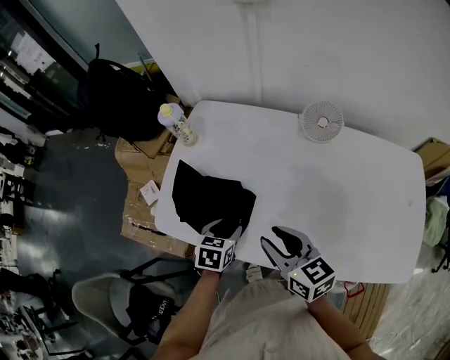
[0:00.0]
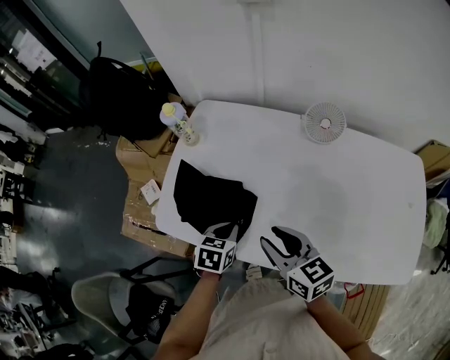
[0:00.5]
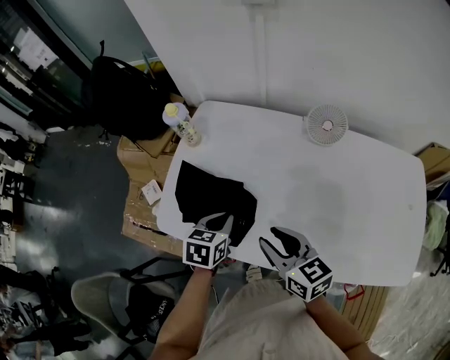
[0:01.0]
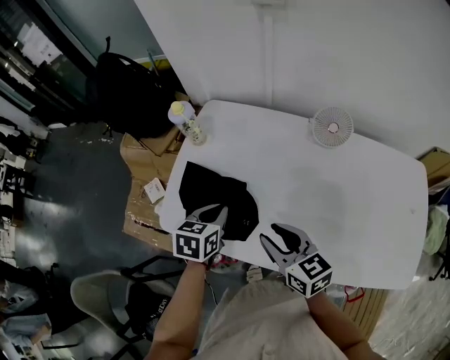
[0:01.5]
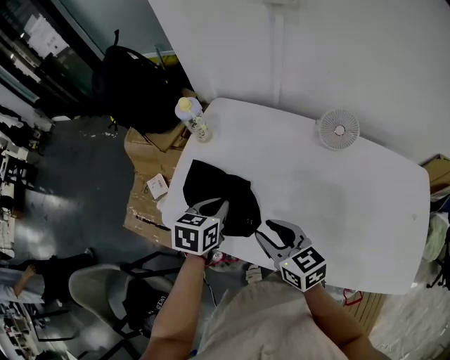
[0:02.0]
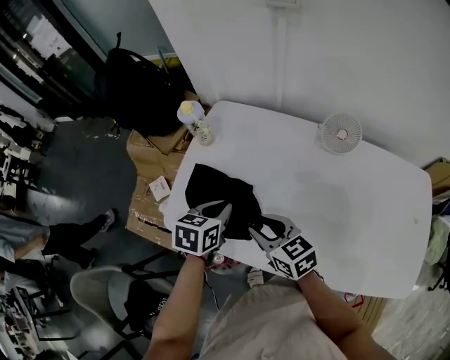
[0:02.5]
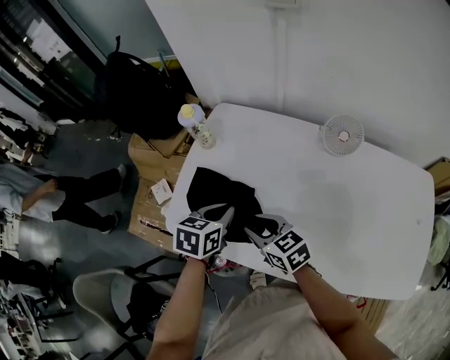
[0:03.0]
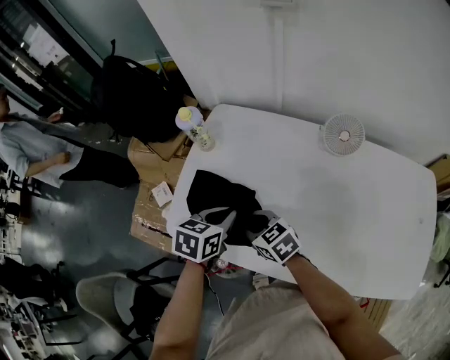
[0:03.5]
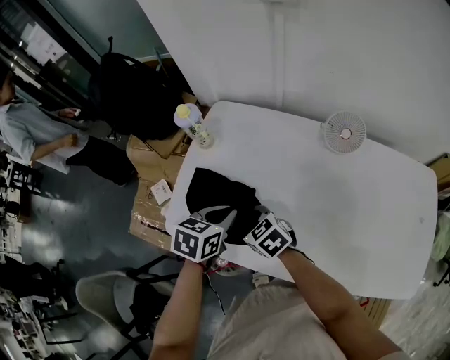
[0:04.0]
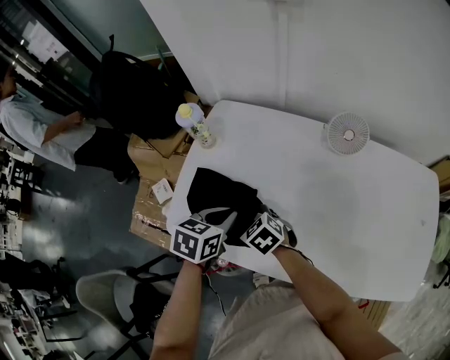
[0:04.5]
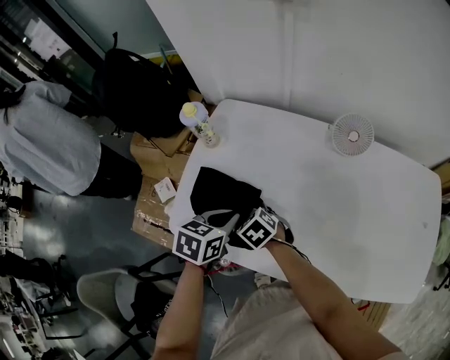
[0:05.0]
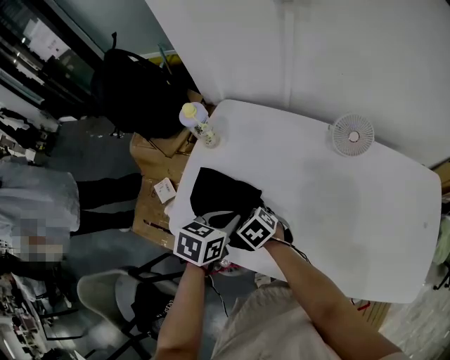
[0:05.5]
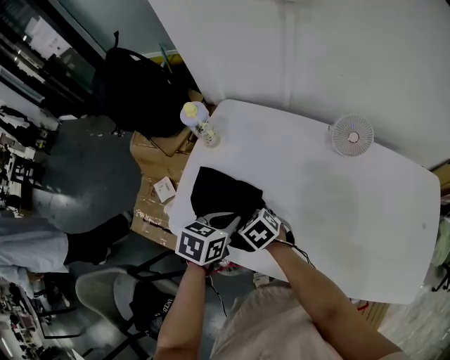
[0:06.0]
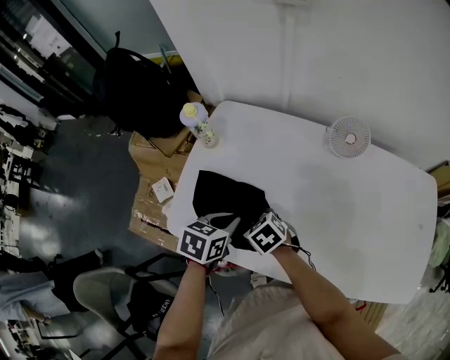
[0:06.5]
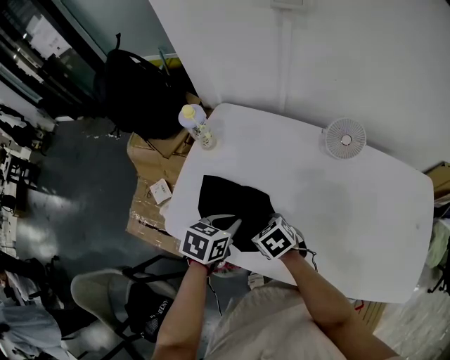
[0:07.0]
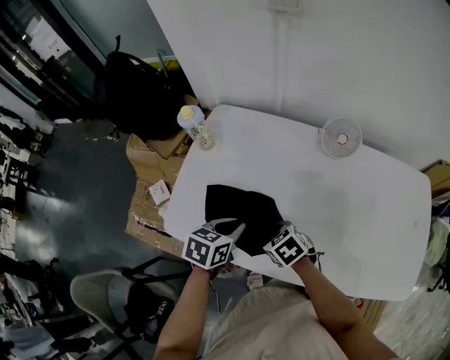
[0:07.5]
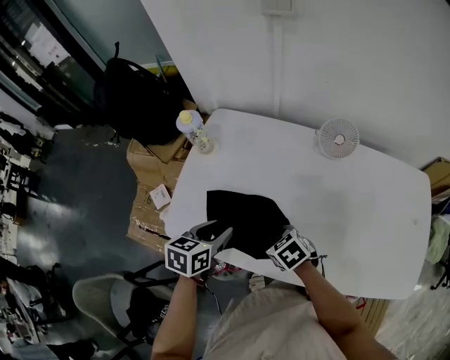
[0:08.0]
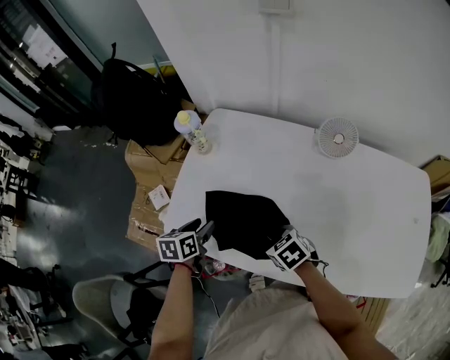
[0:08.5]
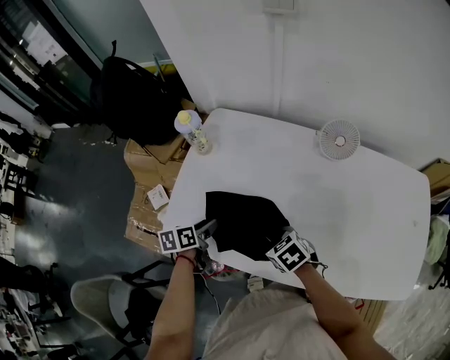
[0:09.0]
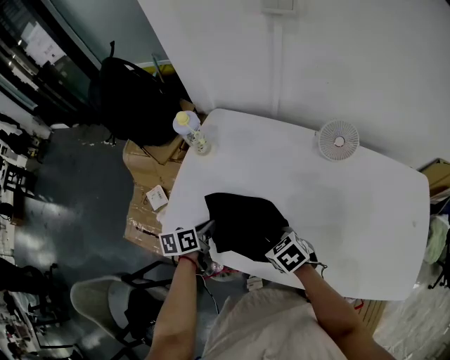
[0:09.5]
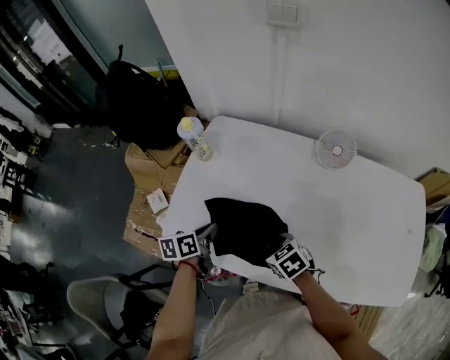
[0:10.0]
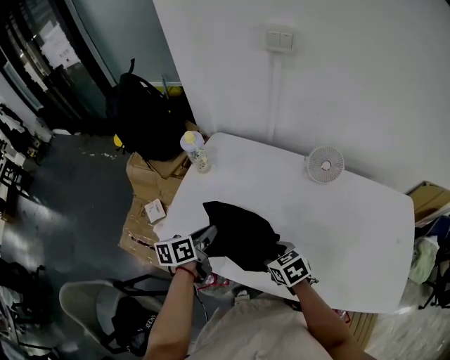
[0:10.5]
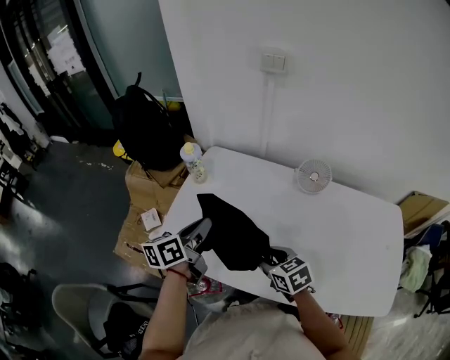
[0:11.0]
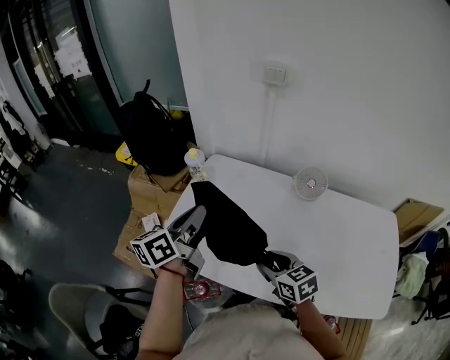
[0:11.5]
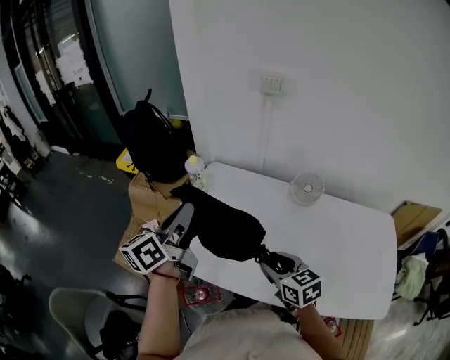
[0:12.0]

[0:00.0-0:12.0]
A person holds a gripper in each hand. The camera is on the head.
0:00.0 to 0:02.0: The right gripper moves some 5 cm. The left gripper goes approximately 10 cm upward and forward, and closes up.
0:02.0 to 0:04.0: The right gripper heads downward, to the left and forward, covering approximately 15 cm, and rotates about 30 degrees.
0:04.0 to 0:06.0: There are only small adjustments of the grippers.
0:06.0 to 0:08.0: The right gripper is displaced to the right and backward by approximately 10 cm. The left gripper opens its fingers.
0:08.0 to 0:10.0: The left gripper shifts roughly 5 cm downward, rotates roughly 30 degrees, and closes up.
0:10.0 to 0:12.0: The right gripper moves upward, some 20 cm, and changes its angle by some 30 degrees. Meanwhile the left gripper shifts approximately 35 cm upward, and points its fingers approximately 40 degrees further upward.

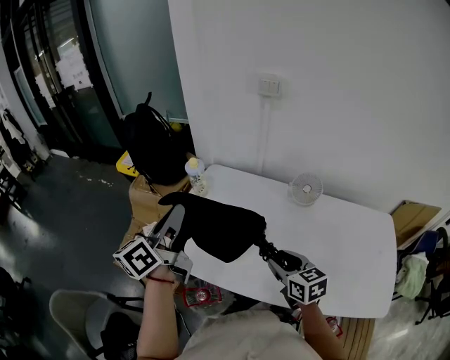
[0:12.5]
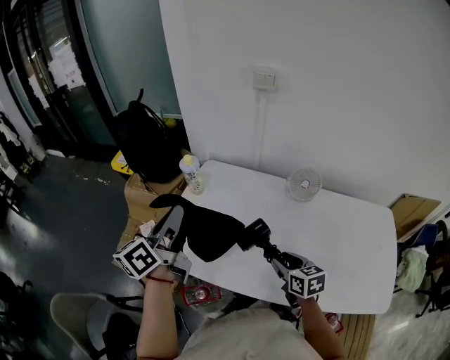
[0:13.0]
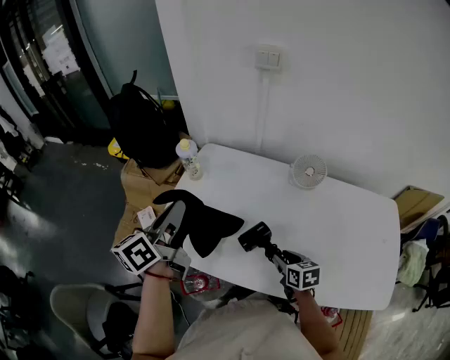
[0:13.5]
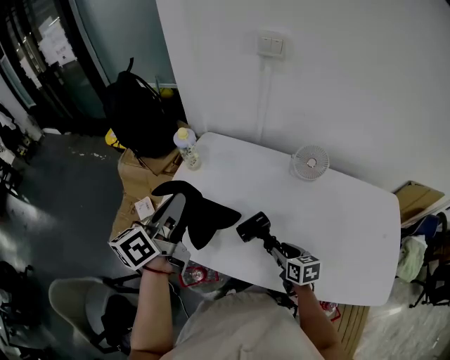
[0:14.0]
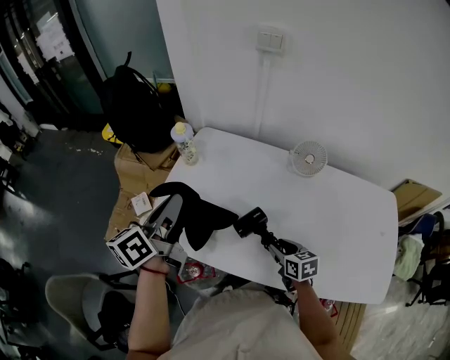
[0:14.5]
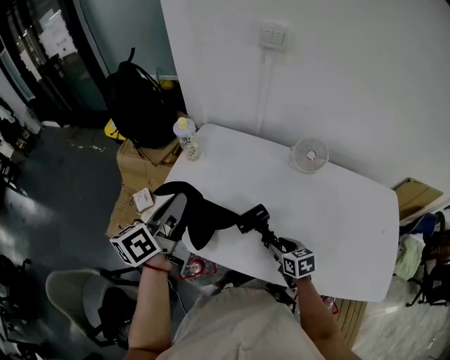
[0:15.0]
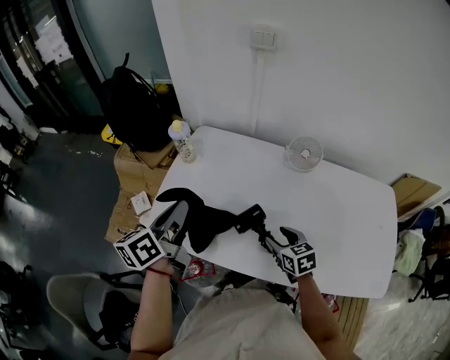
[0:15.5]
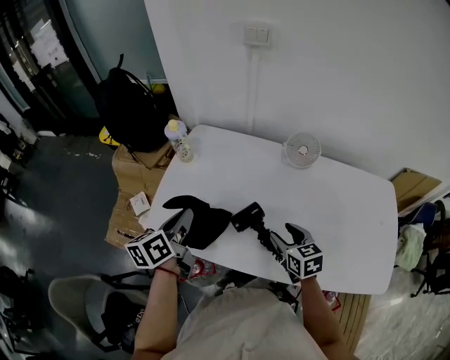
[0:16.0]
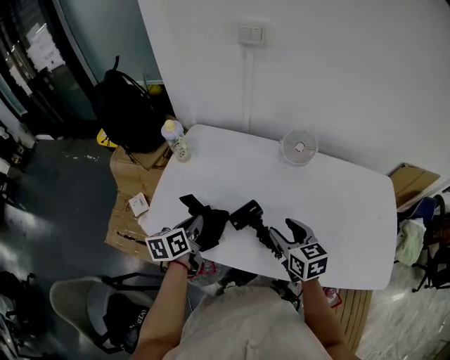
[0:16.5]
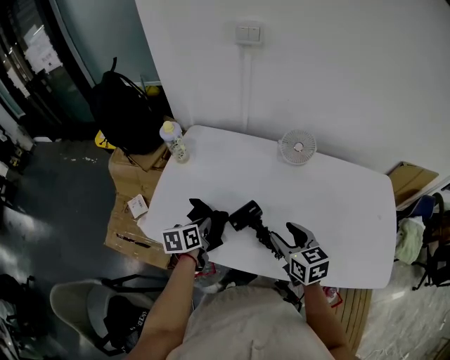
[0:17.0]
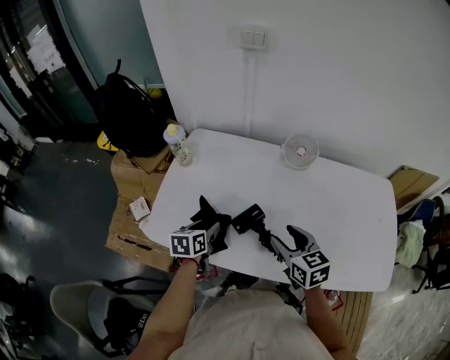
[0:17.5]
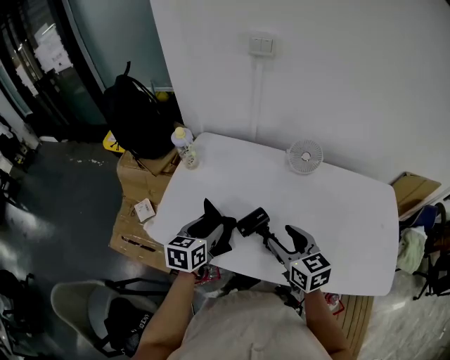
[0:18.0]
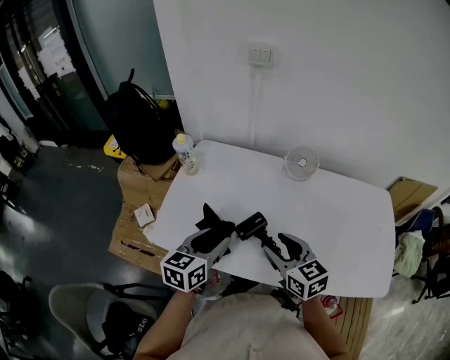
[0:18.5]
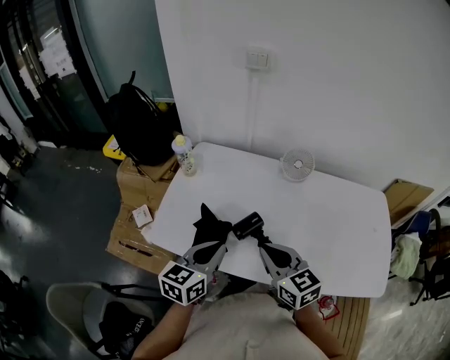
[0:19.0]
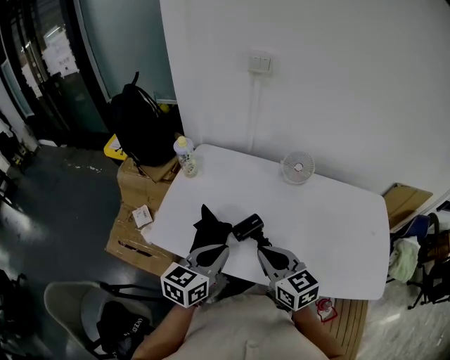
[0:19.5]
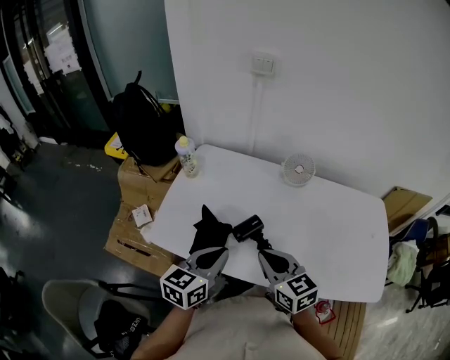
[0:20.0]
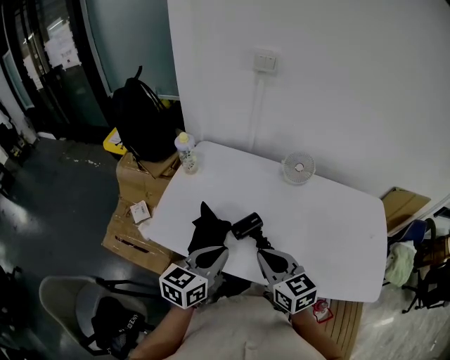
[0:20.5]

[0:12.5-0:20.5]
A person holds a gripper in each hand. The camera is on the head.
0:12.5 to 0:14.5: The right gripper is displaced downward by some 15 cm; the left gripper travels downward by approximately 10 cm.
0:14.5 to 0:16.5: The right gripper shifts about 10 cm upward. The left gripper travels downward by some 20 cm, and changes its angle by approximately 30 degrees.
0:16.5 to 0:18.5: The left gripper moves upward, to the right and backward, some 10 cm, swivels approximately 30 degrees, and opens; the right gripper travels upward and to the left by roughly 10 cm.
0:18.5 to 0:20.5: The right gripper shifts by about 5 cm, and closes, while the left gripper shifts about 5 cm backward, and closes.

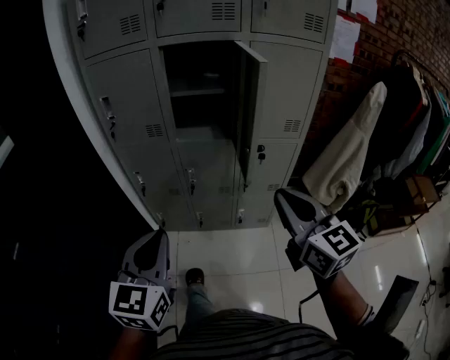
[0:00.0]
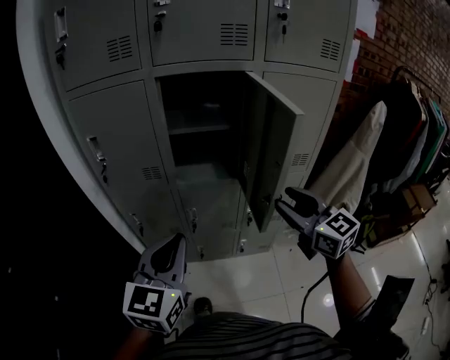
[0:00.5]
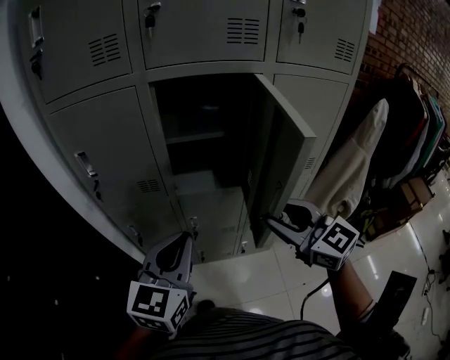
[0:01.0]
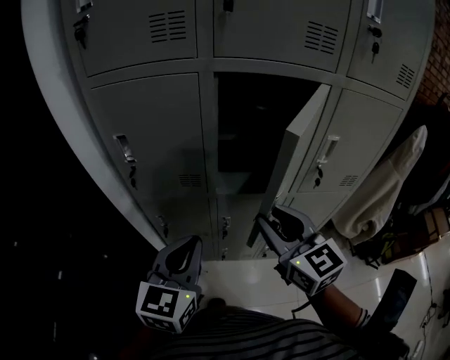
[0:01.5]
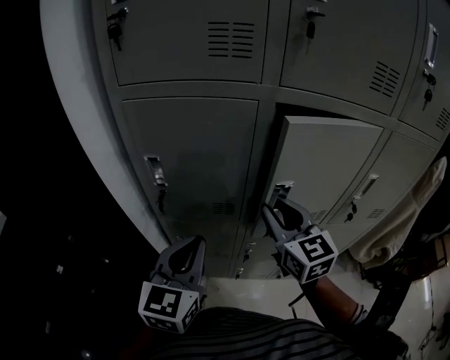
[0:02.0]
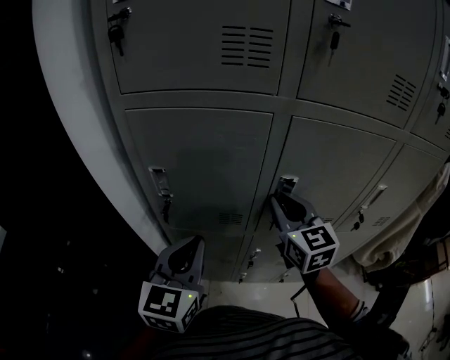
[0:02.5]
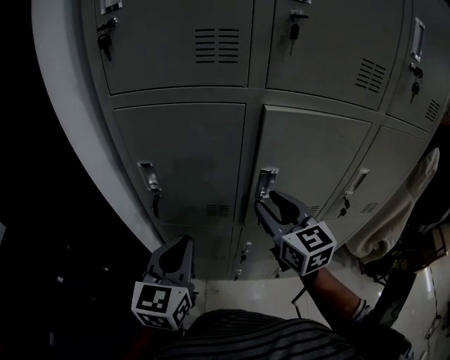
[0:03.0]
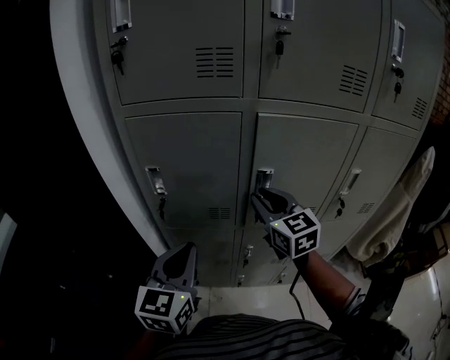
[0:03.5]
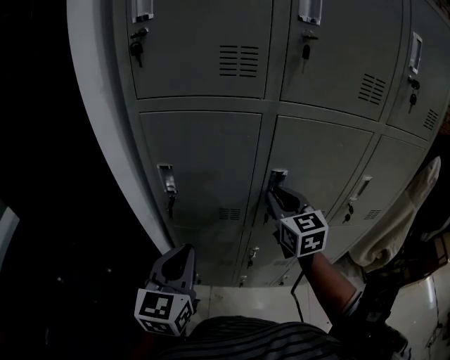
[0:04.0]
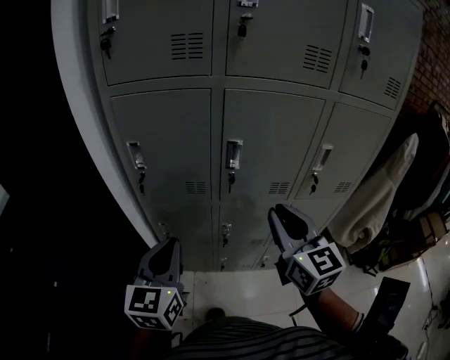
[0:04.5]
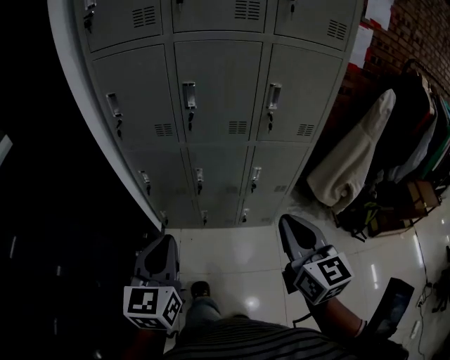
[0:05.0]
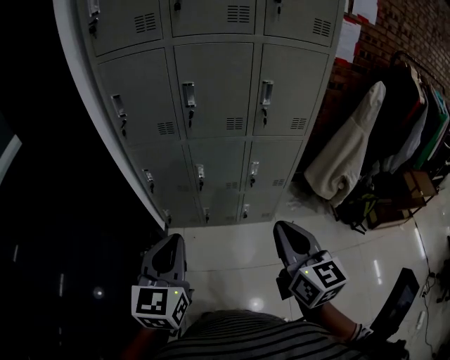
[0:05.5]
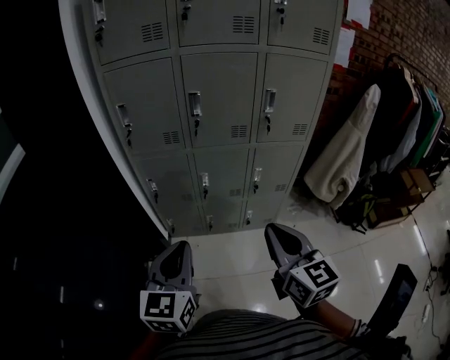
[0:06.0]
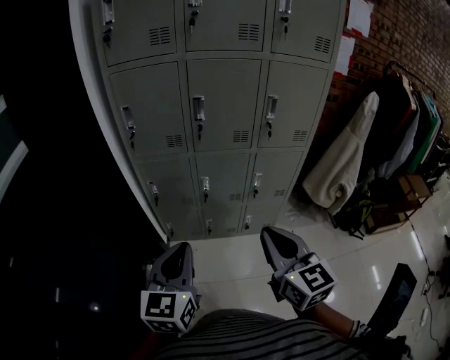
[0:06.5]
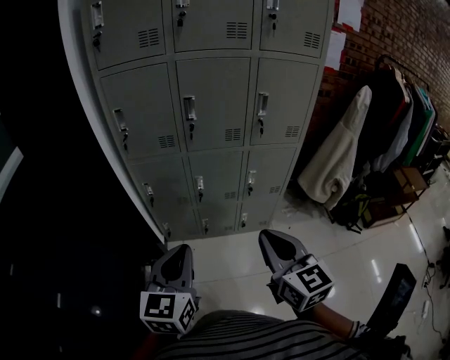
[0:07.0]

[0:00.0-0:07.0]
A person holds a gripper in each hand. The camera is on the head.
0:00.0 to 0:02.0: Both grippers move forward and to the left, roughly 40 cm. The right gripper opens up.
0:02.0 to 0:03.5: The grippers move only a little.
0:03.5 to 0:05.0: The grippers both shift backward and to the right by roughly 40 cm. The right gripper closes.
0:05.0 to 0:07.0: The left gripper goes about 5 cm backward. The right gripper travels to the left and backward by some 10 cm.
